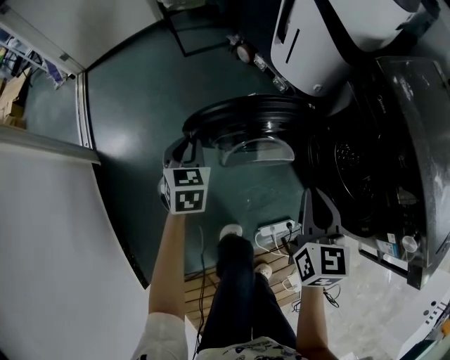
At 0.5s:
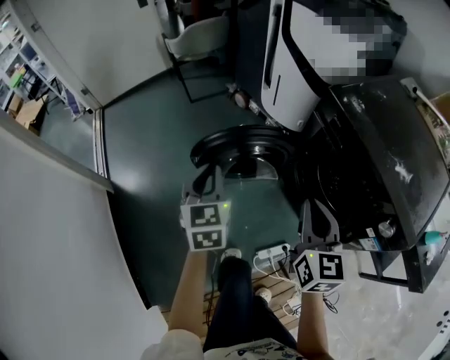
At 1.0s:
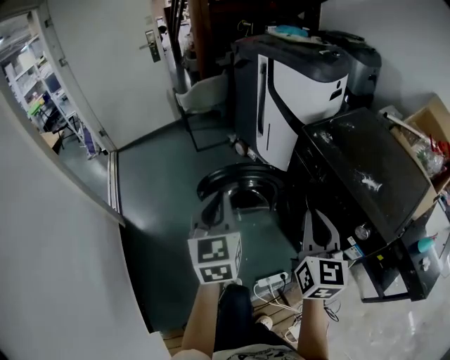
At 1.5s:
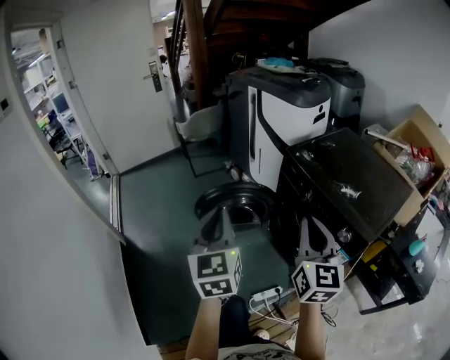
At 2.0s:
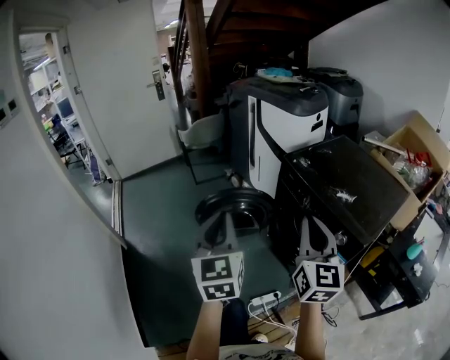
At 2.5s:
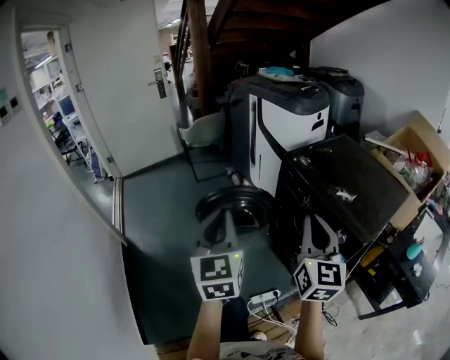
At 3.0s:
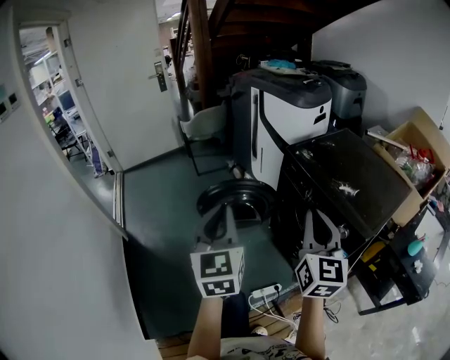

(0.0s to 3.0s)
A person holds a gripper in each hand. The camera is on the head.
0.0s - 1.5s: Both grippers move upward and backward, roughly 40 cm. The right gripper changes its angle by roughly 30 degrees. The left gripper tilts its fingers roughly 30 degrees upward.
1.5s - 3.0s: The grippers make only small movements.

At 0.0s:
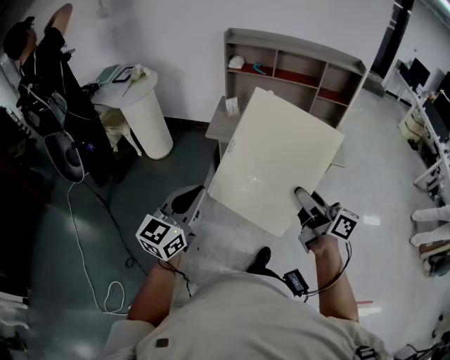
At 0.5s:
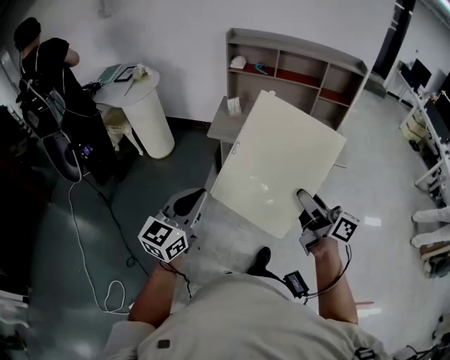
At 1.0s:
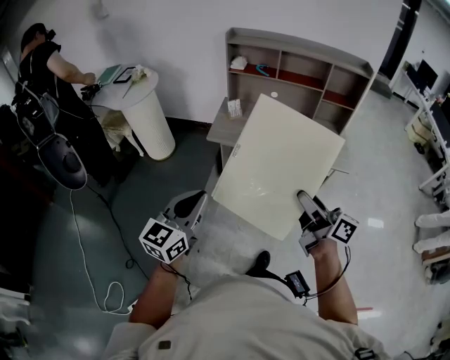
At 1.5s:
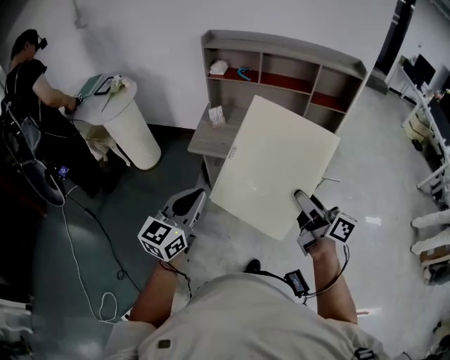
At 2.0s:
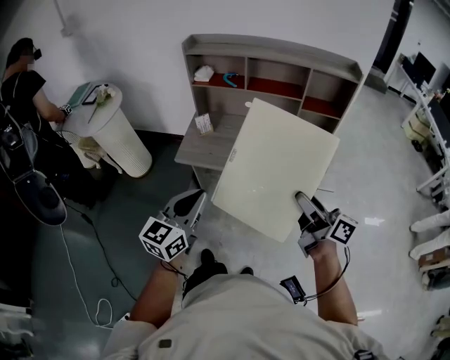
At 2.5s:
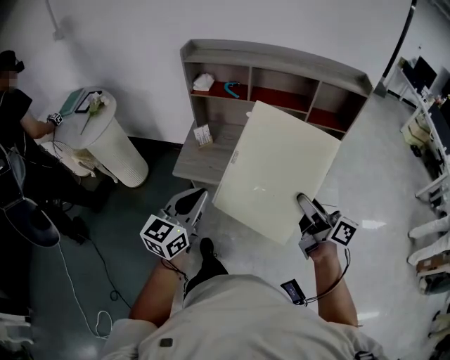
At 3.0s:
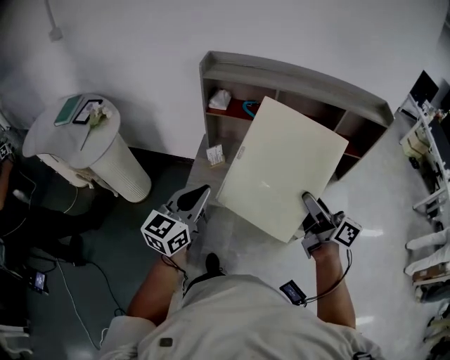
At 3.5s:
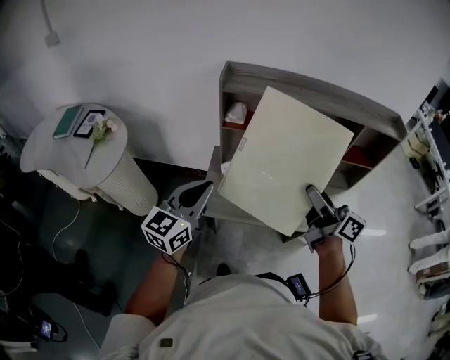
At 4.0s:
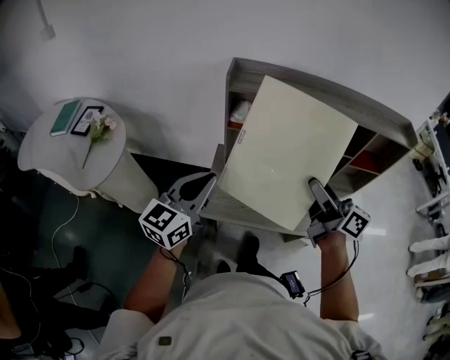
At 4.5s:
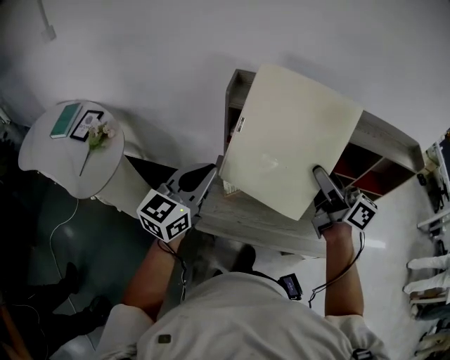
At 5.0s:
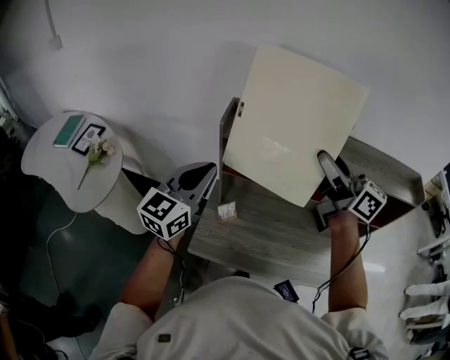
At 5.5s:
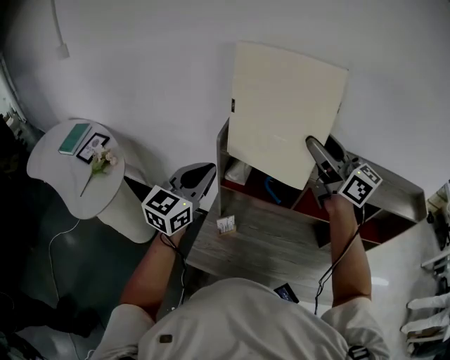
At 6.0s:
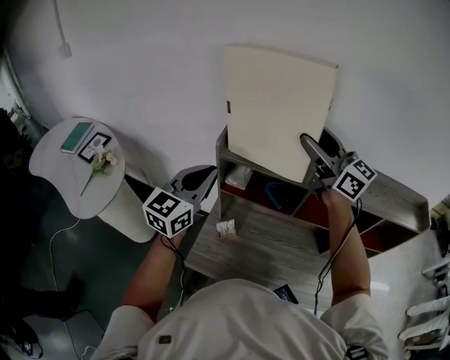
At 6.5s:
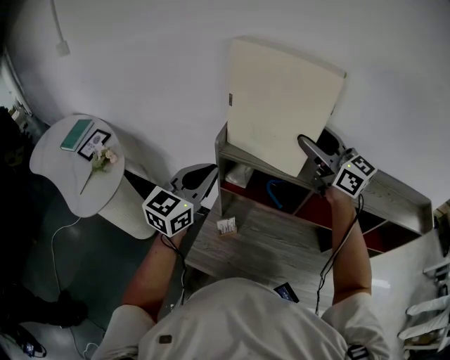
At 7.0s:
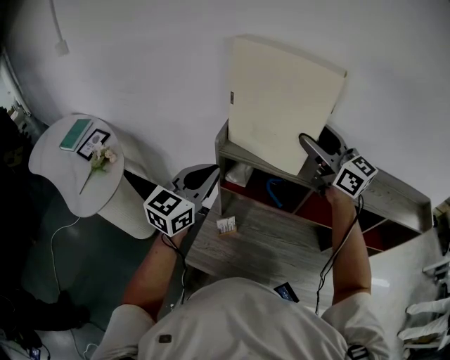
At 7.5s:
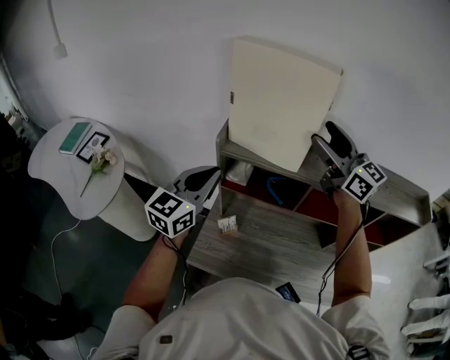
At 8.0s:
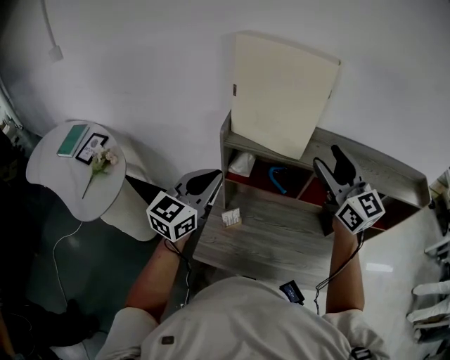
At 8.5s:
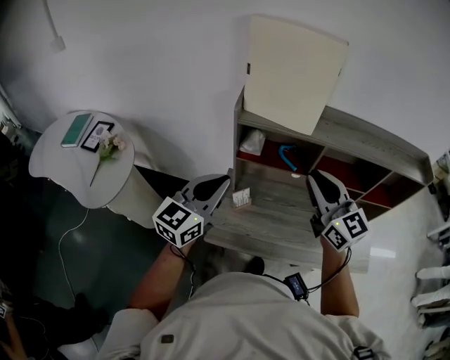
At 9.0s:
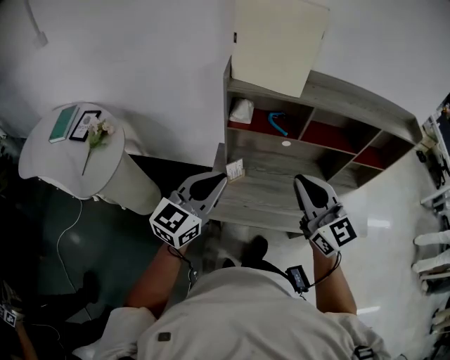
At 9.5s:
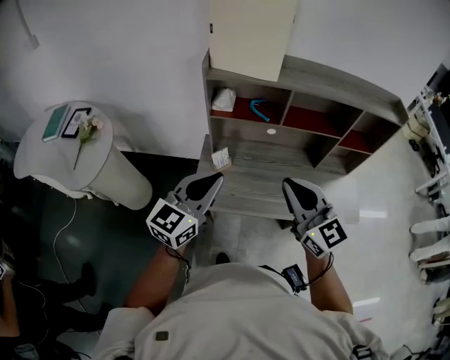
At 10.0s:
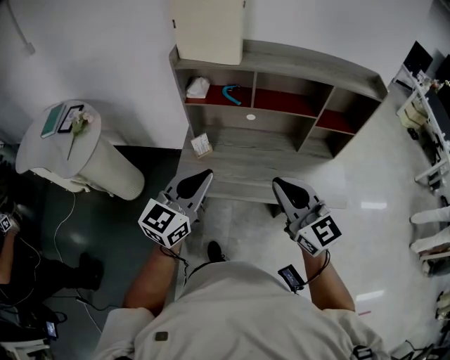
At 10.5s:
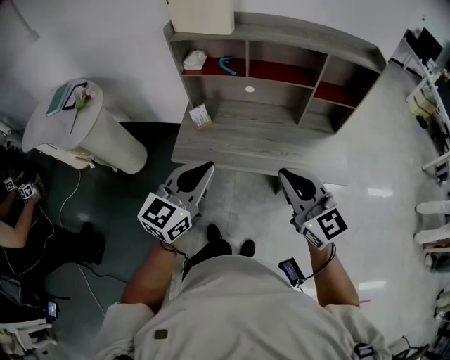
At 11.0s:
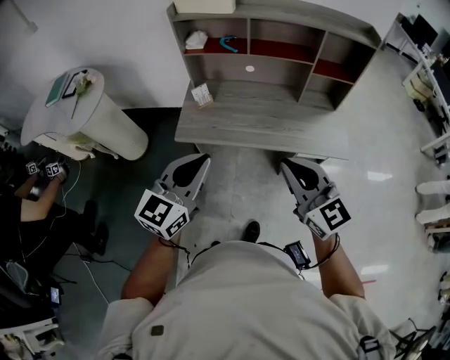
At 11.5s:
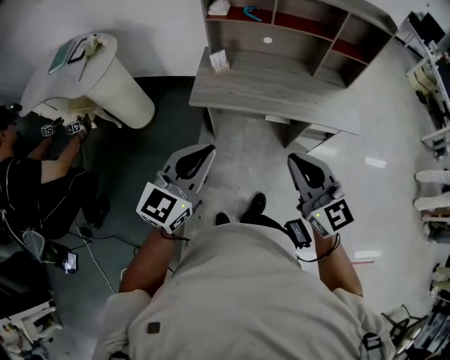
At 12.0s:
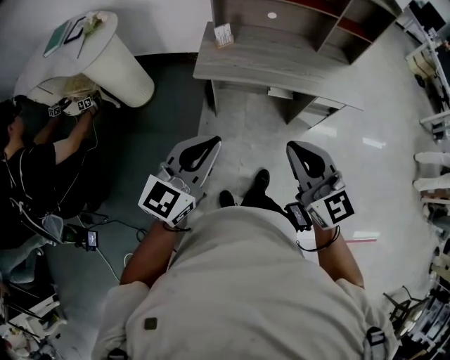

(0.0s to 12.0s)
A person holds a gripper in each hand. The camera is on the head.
0.0s - 2.0s: Both grippers travel together forward and to the right, about 30 cm.
2.0s - 4.0s: Both grippers are carried forward and to the left, some 40 cm.
4.0s - 6.0s: The left gripper goes about 20 cm forward, while the right gripper heads forward and upward, covering some 35 cm, and changes its angle by approximately 30 degrees.
6.0s - 8.0s: The right gripper heads backward, covering some 10 cm, and rotates approximately 20 degrees.
8.0s - 10.0s: The left gripper moves backward and to the right, approximately 30 cm. Meanwhile the right gripper travels backward by about 35 cm, and closes.
10.0s - 12.0s: Both grippers move backward, some 30 cm.

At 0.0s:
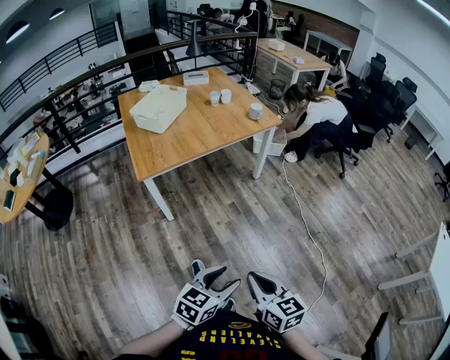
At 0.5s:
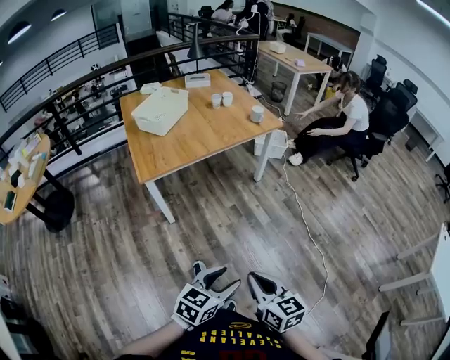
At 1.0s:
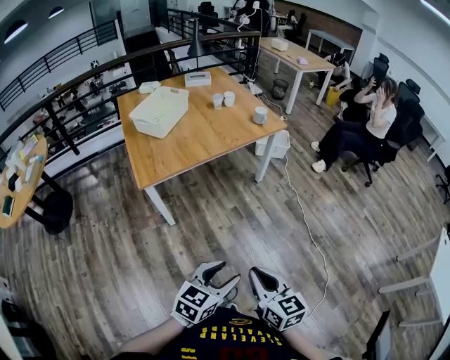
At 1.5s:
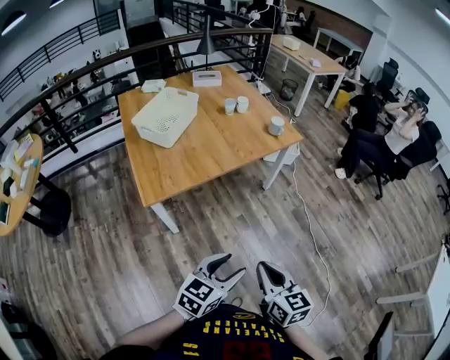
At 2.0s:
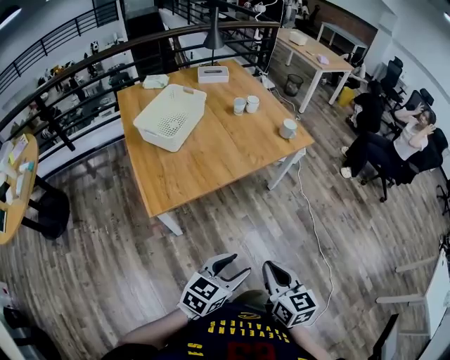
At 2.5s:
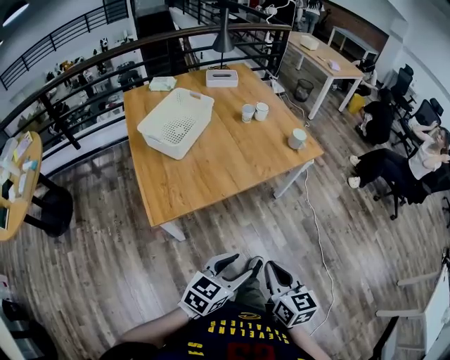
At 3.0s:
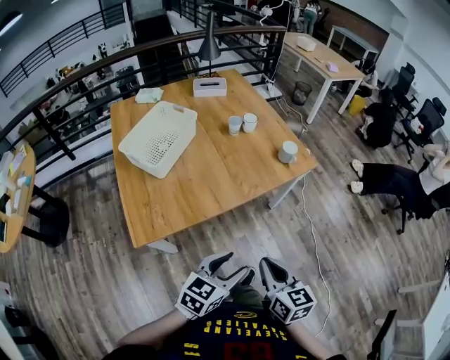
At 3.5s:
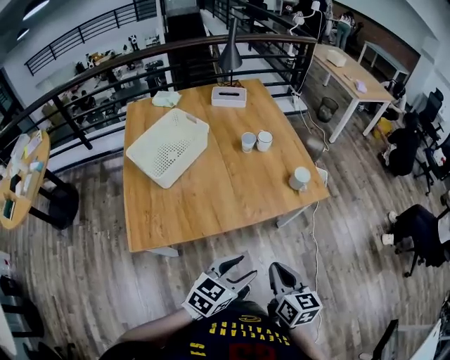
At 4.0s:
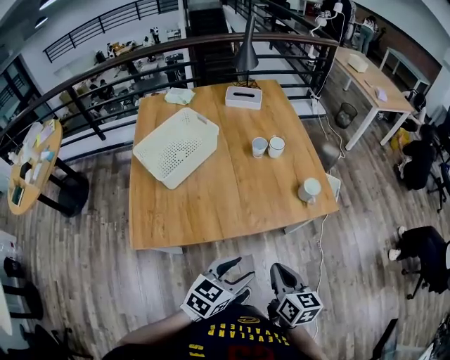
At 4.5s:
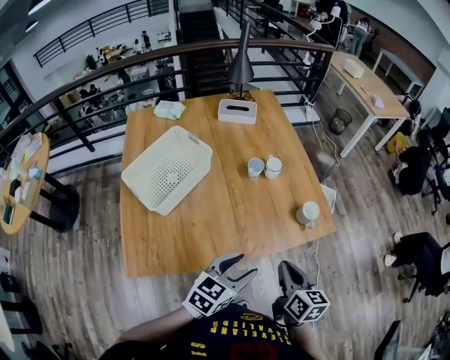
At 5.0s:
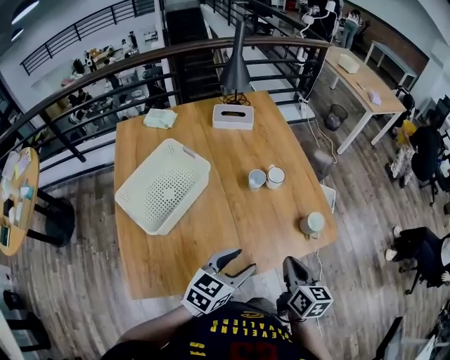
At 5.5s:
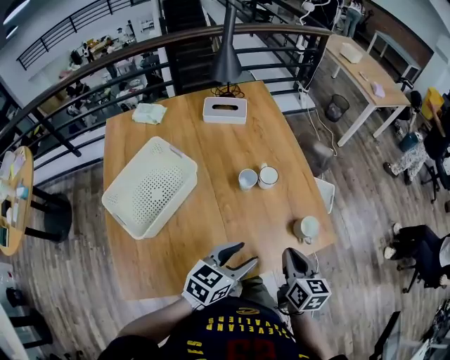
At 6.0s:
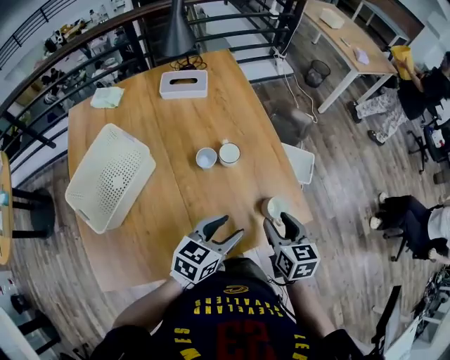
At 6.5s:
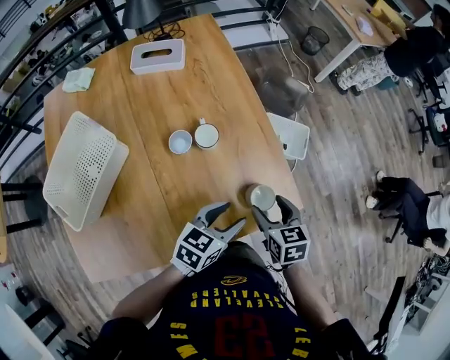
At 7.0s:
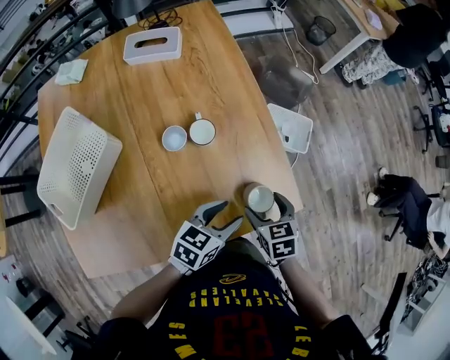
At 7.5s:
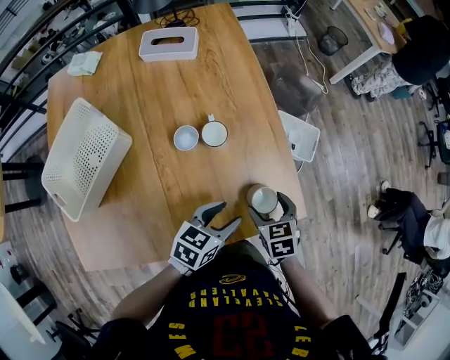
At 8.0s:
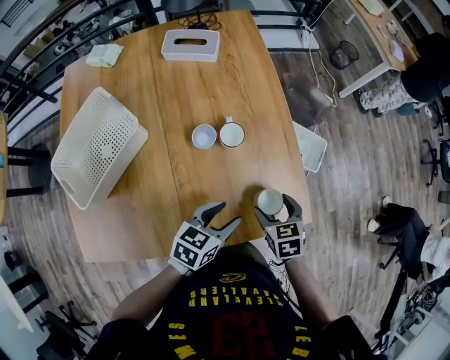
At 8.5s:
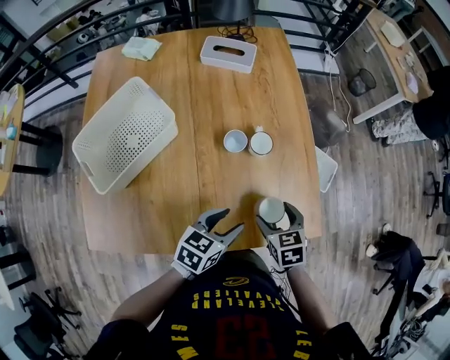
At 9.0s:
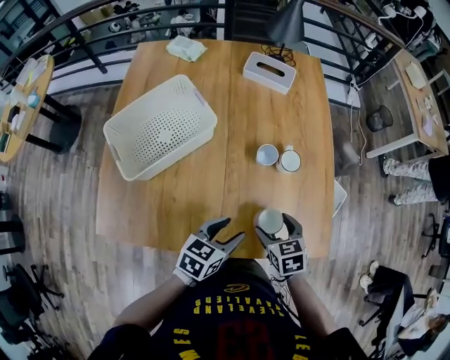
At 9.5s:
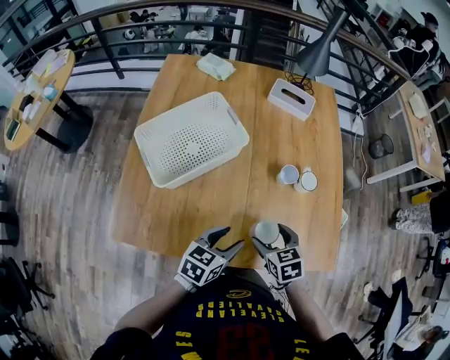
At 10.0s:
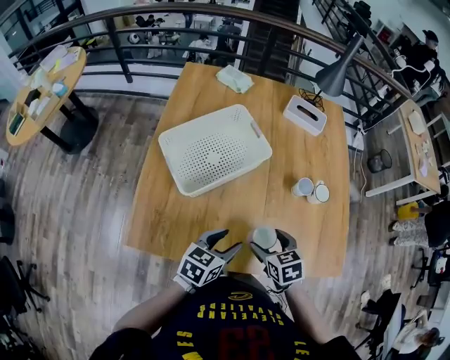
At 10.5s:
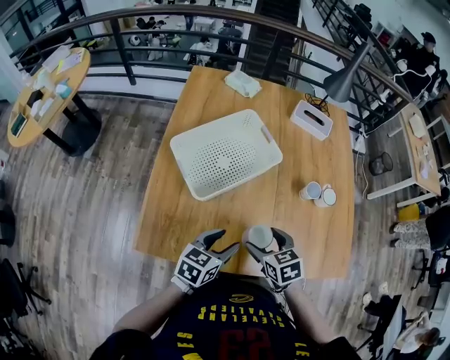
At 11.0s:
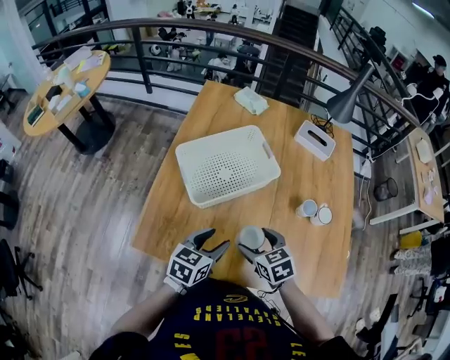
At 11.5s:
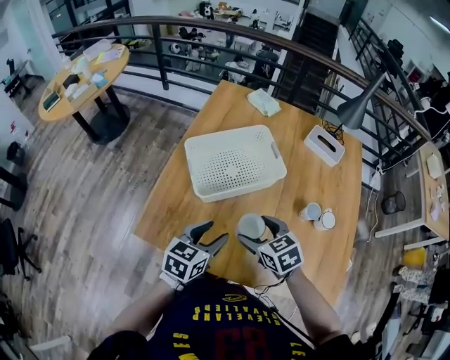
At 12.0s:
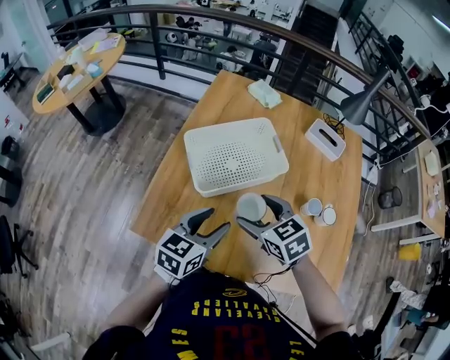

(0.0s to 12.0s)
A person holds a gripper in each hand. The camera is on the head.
0.0s - 2.0s: Both grippers move forward and to the left, roughly 30 cm.
2.0s - 4.0s: The grippers both shift forward by some 35 cm.
4.0s - 6.0s: Both grippers travel together forward, about 30 cm. The right gripper opens.
6.0s - 8.0s: The grippers both shift downward by approximately 10 cm. The right gripper rotates about 30 degrees, and opens its fingers.
8.0s - 10.0s: The left gripper shifts by roughly 30 cm, and rotates roughly 20 degrees. Meanwhile the right gripper moves about 30 cm, and rotates about 20 degrees.
10.0s - 12.0s: Both grippers move upward, to the left and forward, approximately 15 cm. The left gripper swivels roughly 20 degrees. The right gripper turns by some 30 degrees.
